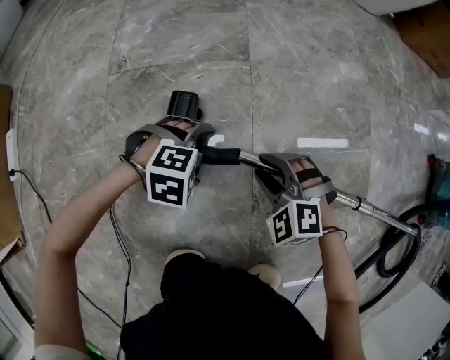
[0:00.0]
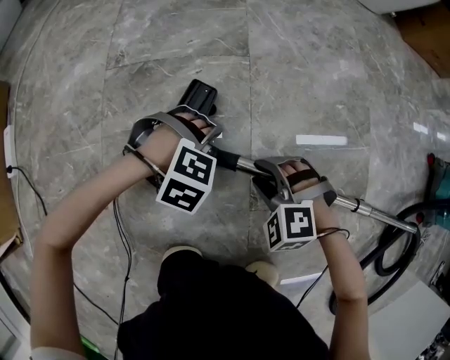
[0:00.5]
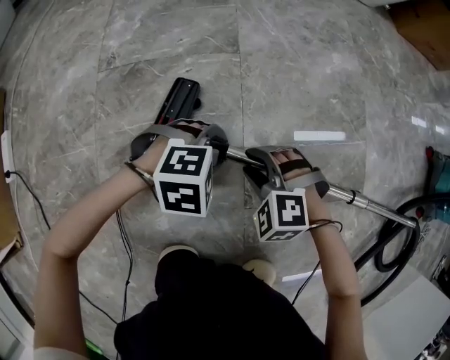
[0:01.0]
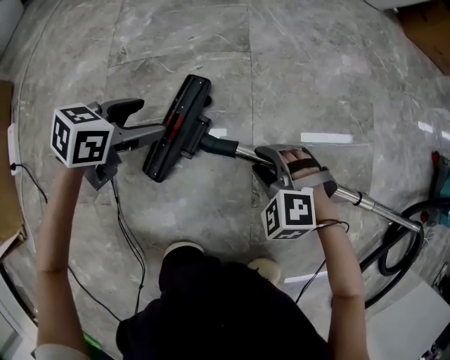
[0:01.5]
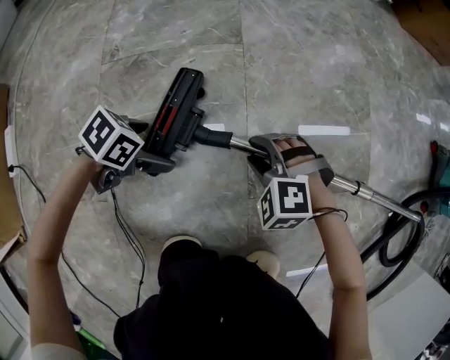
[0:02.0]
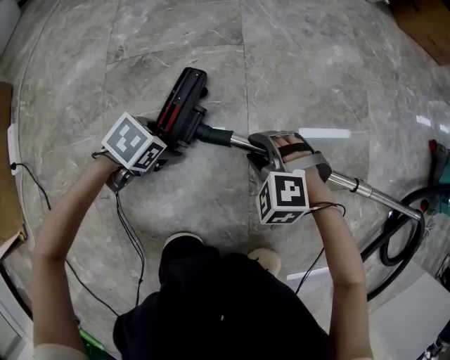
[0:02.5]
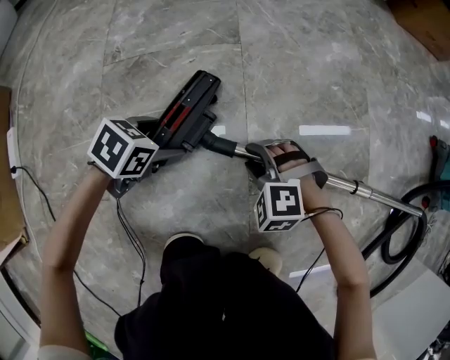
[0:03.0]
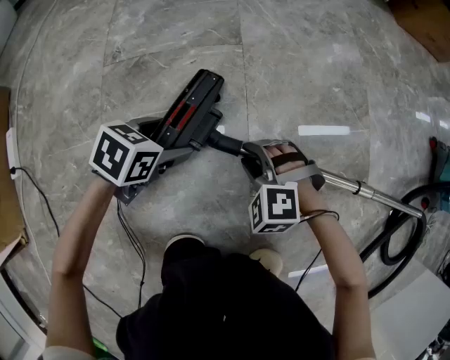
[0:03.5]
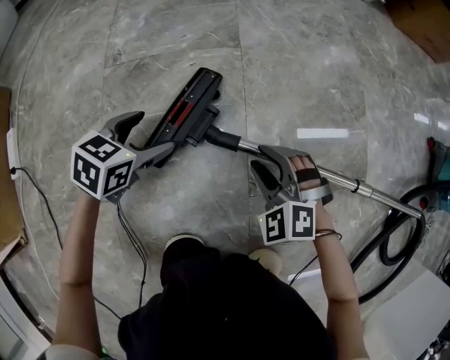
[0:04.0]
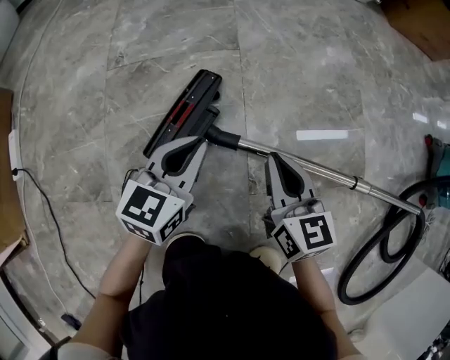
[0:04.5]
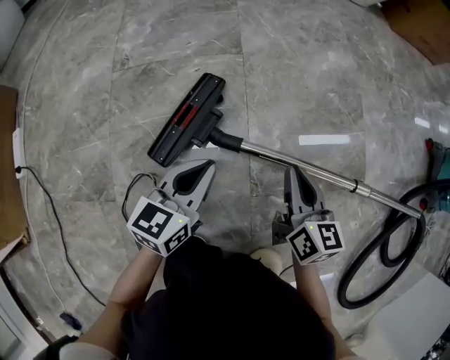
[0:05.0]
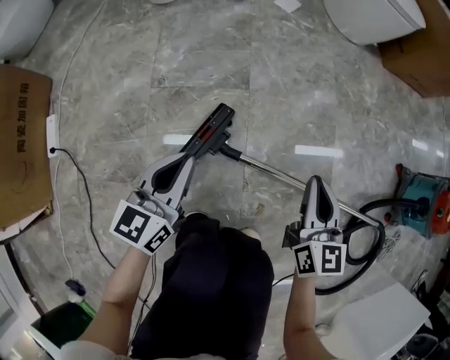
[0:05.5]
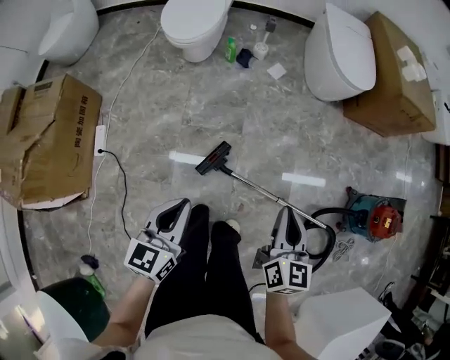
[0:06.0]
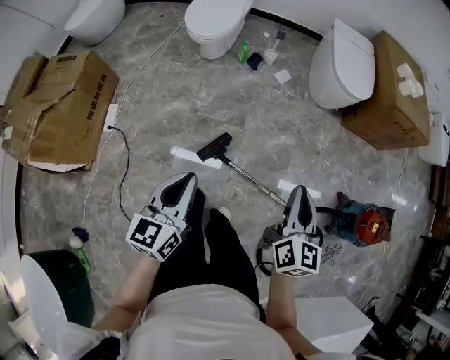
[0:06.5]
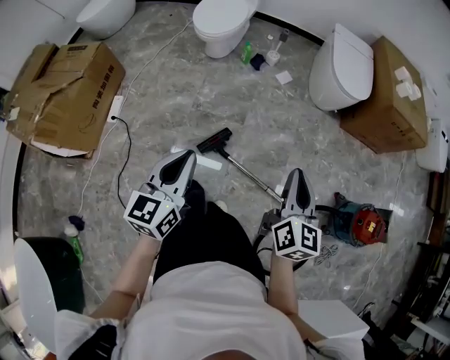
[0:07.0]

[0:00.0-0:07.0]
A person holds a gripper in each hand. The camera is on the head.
0:00.0 to 0:02.0: The left gripper moves approximately 10 cm upward and comes back, rolls counterclockwise, seen from behind, by about 60 degrees, and closes, then reopens.
0:02.0 to 0:03.5: The left gripper changes place by approximately 5 cm.
0:03.5 to 0:05.0: The two grippers go some 15 cm to the right and upward. The left gripper points its fingers approximately 30 degrees further upward, and closes its fingers; the right gripper rotates around the line of its fingers by roughly 90 degrees, clockwise from behind, and closes.
0:05.0 to 0:07.0: The two grippers go some 80 cm upward. The left gripper swivels some 30 degrees.

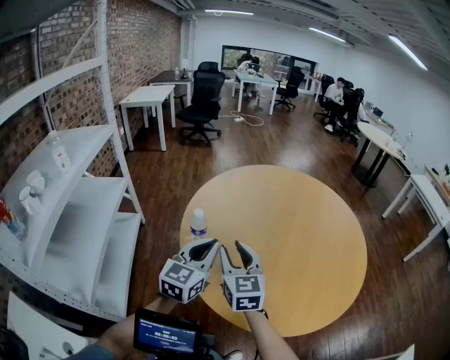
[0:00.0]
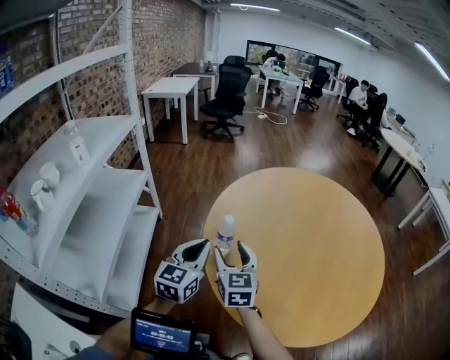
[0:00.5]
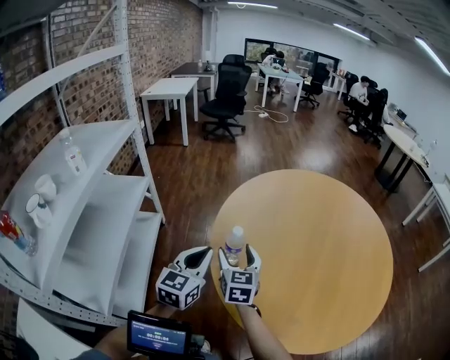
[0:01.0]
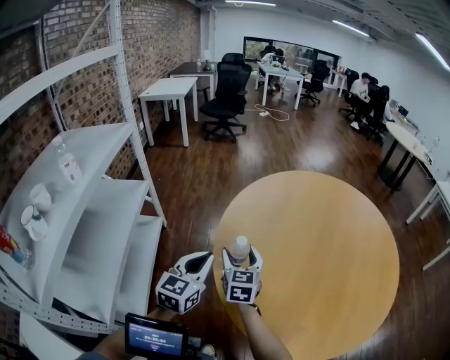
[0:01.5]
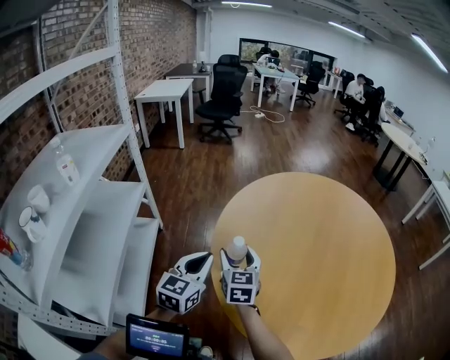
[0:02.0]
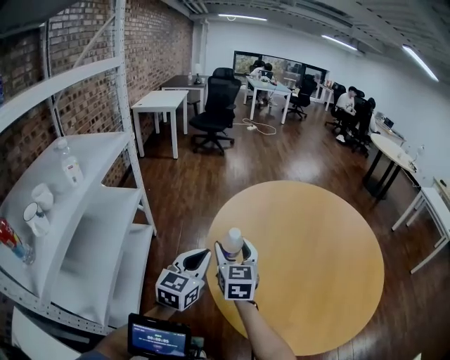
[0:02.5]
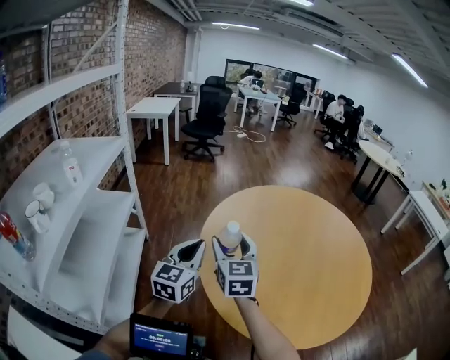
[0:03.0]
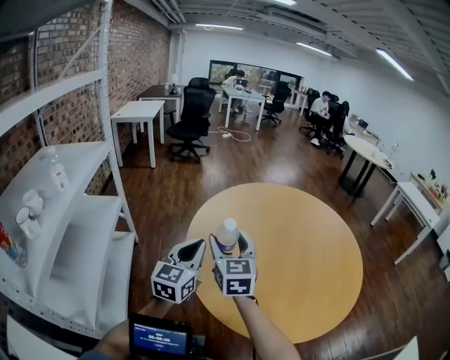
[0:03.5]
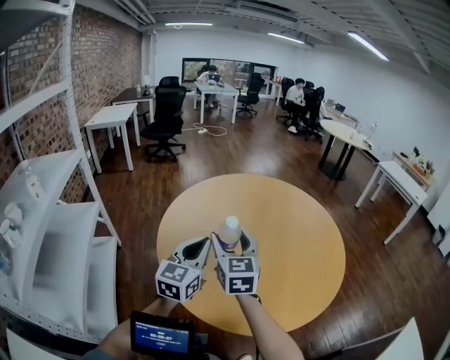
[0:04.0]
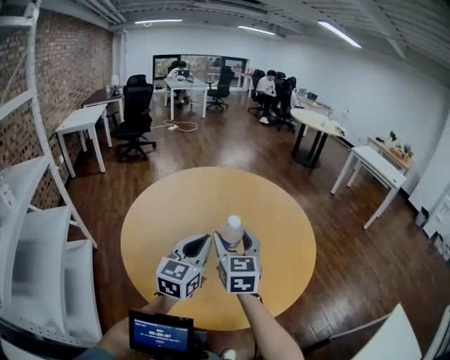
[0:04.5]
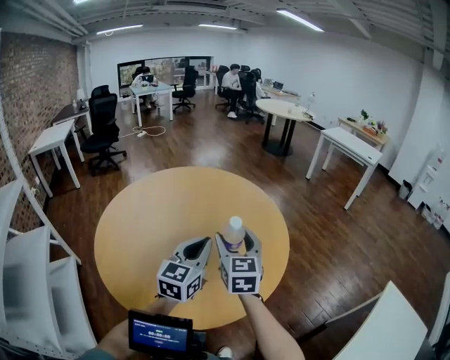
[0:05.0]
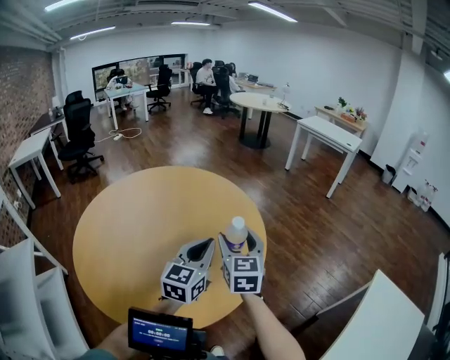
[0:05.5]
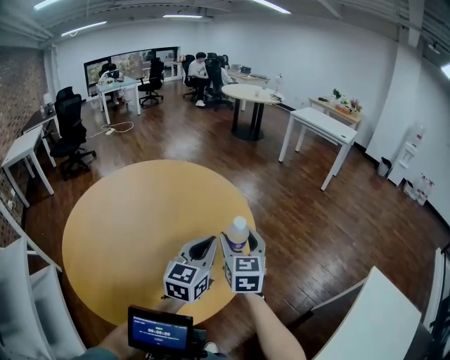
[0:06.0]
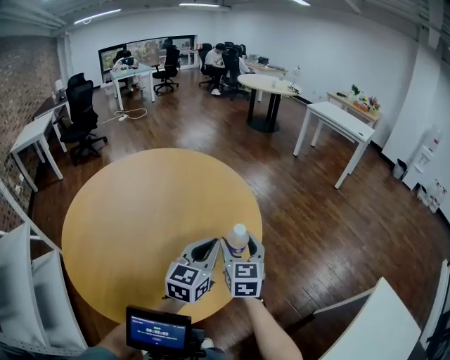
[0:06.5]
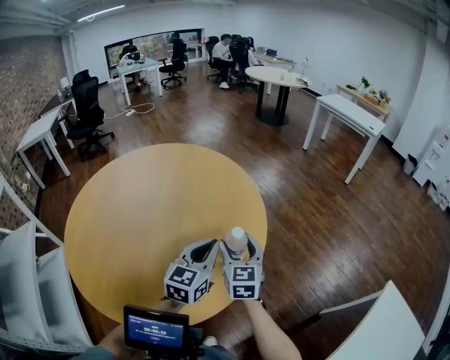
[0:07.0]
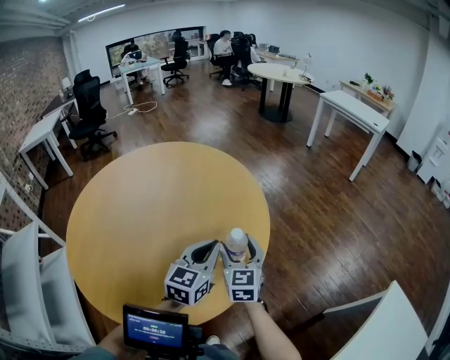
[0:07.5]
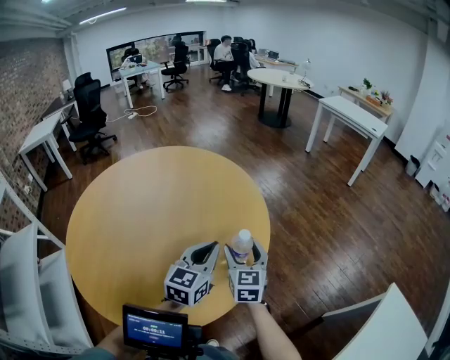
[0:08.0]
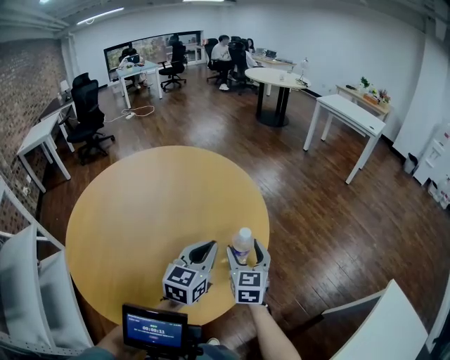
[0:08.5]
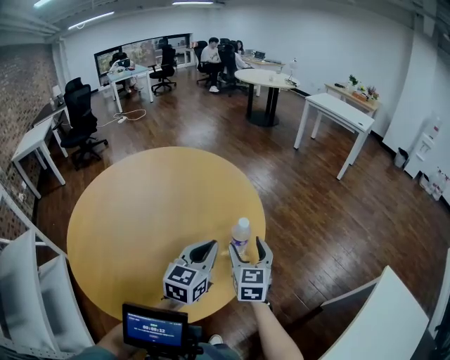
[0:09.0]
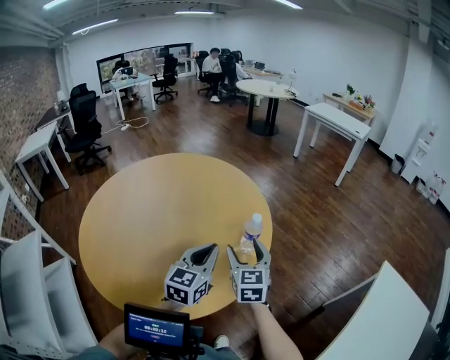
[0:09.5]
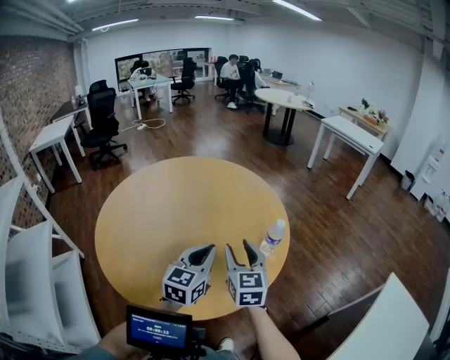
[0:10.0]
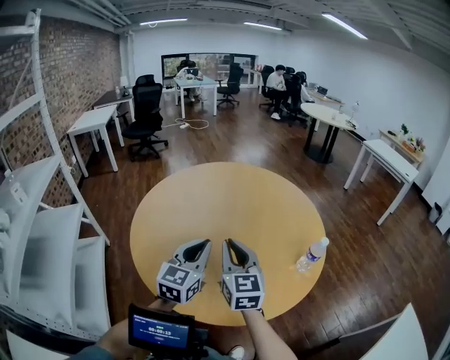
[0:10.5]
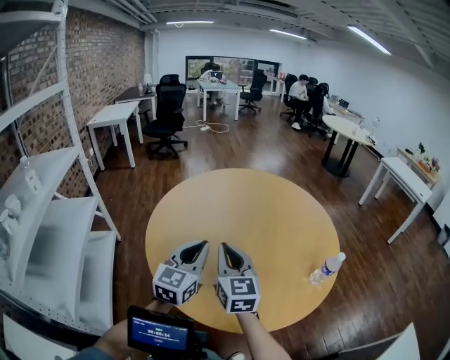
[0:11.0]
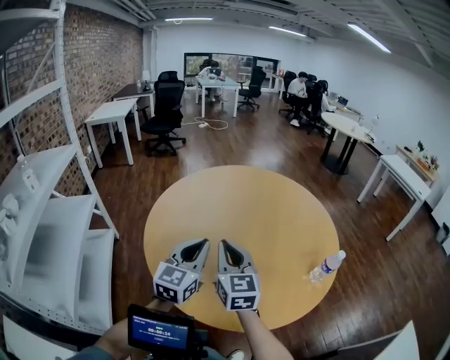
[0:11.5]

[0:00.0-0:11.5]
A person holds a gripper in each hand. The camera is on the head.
0:00.0 to 0:02.0: The right gripper travels forward, to the left and downward by roughly 20 cm; the left gripper is displaced to the left, forward and downward by approximately 20 cm.
0:02.0 to 0:04.0: Both grippers move to the right and upward, about 25 cm.
0:04.0 to 0:06.0: Both grippers are carried about 50 cm. The left gripper rotates about 30 degrees. Meanwhile the right gripper rotates some 30 degrees.
0:06.0 to 0:07.5: Both grippers move downward, approximately 10 cm.
0:07.5 to 0:09.5: The right gripper is displaced backward and upward by approximately 10 cm. The left gripper goes approximately 10 cm backward.
0:09.5 to 0:11.5: The left gripper changes place by some 30 cm, and rotates about 30 degrees. Meanwhile the right gripper ends up approximately 35 cm from where it was, swivels approximately 30 degrees, and closes.

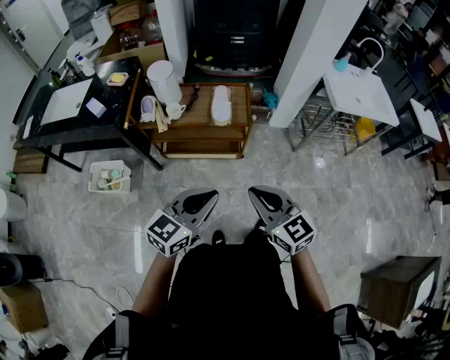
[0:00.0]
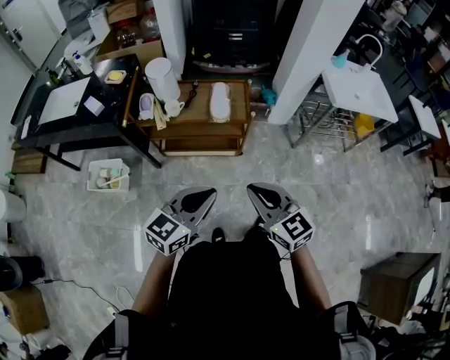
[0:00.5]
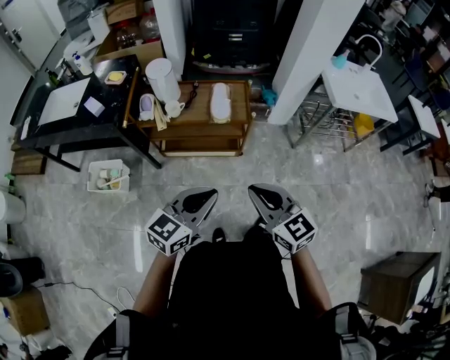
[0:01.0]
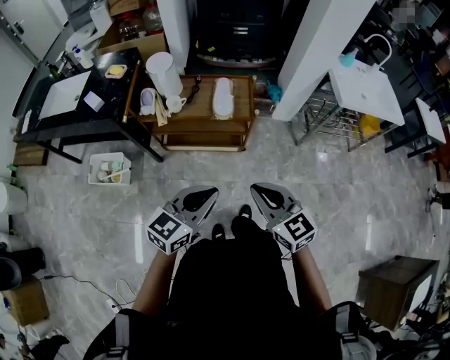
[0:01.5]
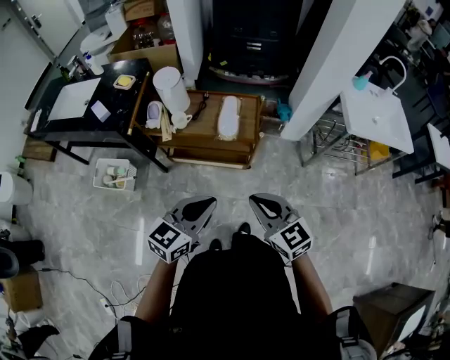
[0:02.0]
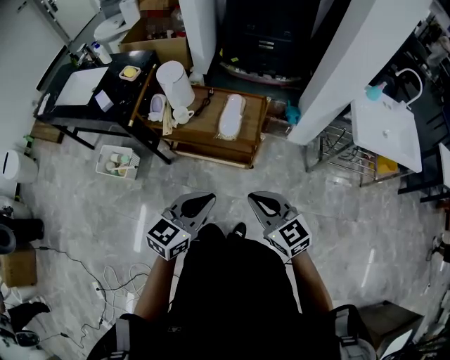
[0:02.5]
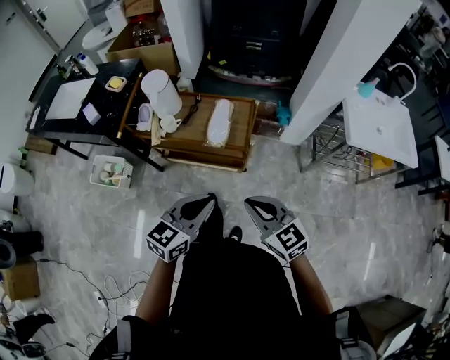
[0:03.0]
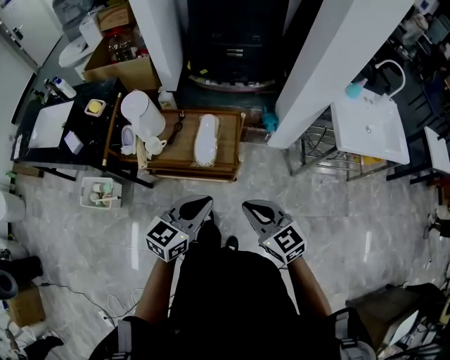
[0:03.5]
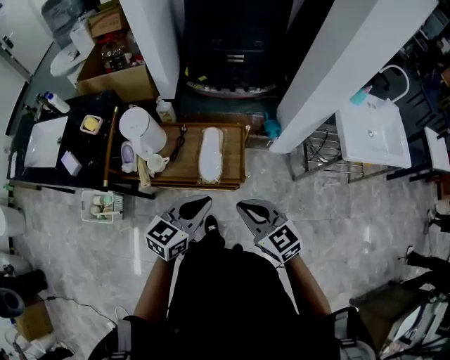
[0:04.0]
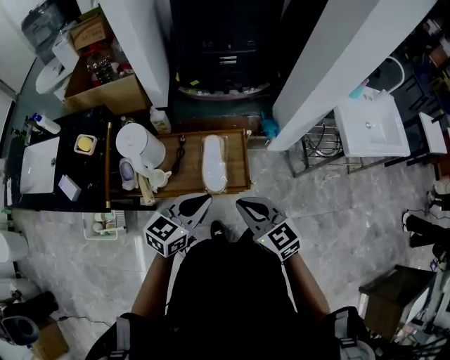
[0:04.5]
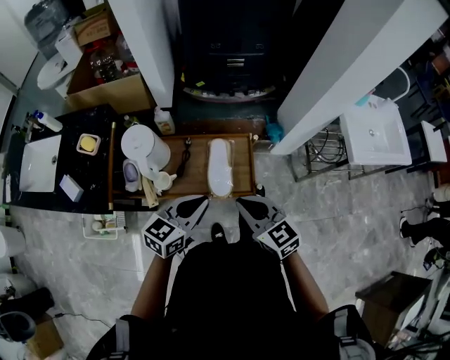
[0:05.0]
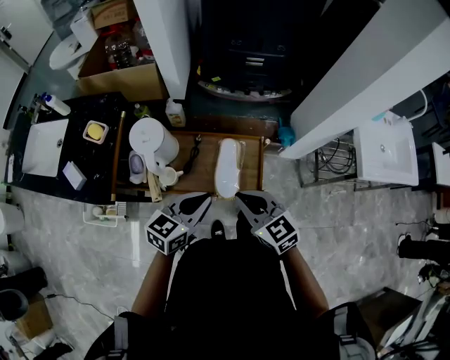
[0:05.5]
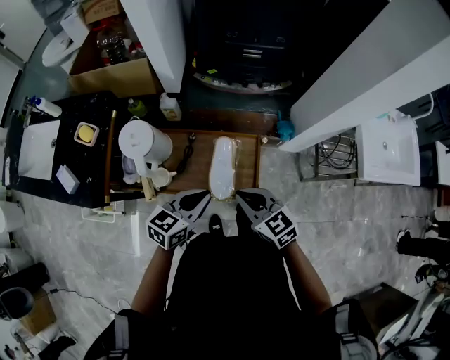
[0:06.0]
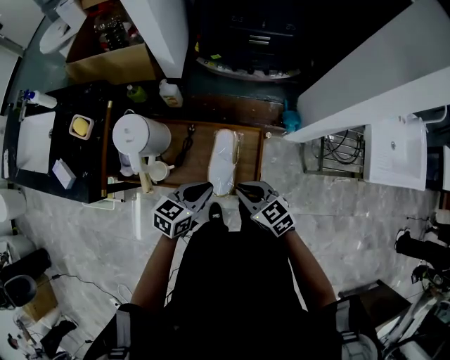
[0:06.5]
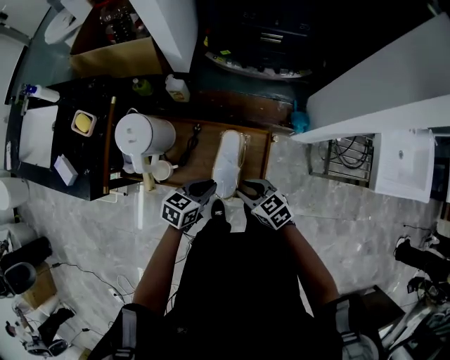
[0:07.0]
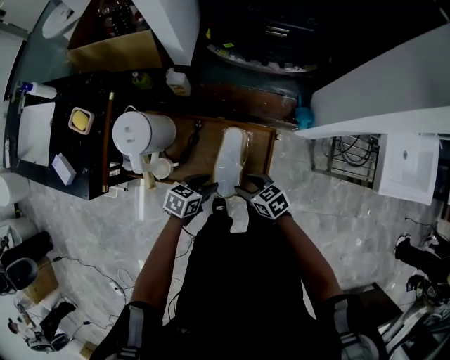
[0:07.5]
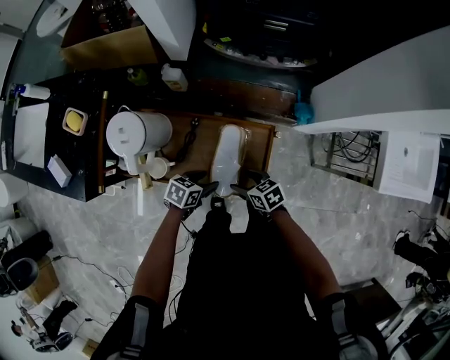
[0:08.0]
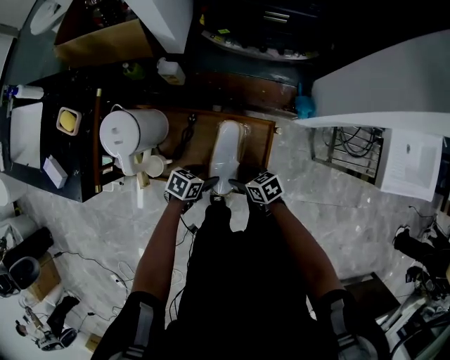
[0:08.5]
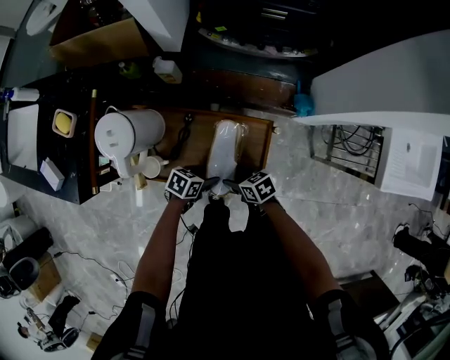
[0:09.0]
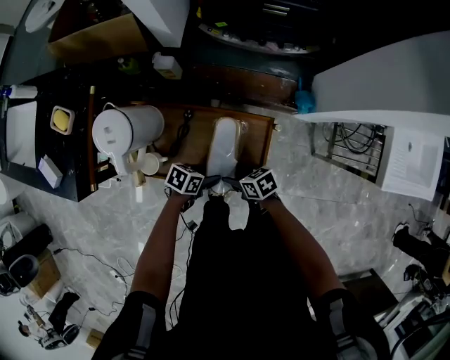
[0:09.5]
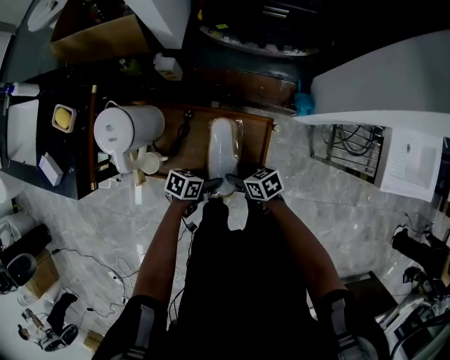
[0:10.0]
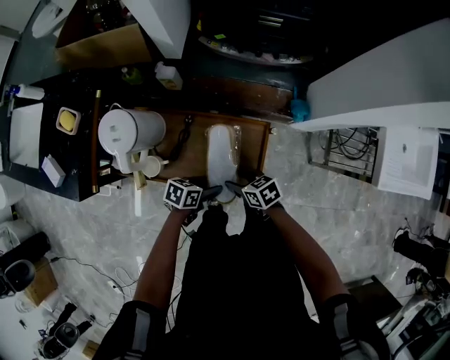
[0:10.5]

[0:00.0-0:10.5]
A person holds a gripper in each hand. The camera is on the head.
0:00.0 to 0:02.0: Both grippers travel together forward, roughly 10 cm.
0:02.0 to 0:04.0: Both grippers move forward, roughly 25 cm.
0:04.0 to 0:06.5: Both grippers travel together forward and downward, roughly 20 cm.
0:06.5 to 0:08.5: The grippers both shift downward by about 20 cm. The left gripper rotates some 30 degrees, and opens its fingers. Meanwhile the right gripper turns by roughly 30 degrees, and opens its fingers.
0:08.5 to 0:10.5: There are only small adjustments of the grippers.
